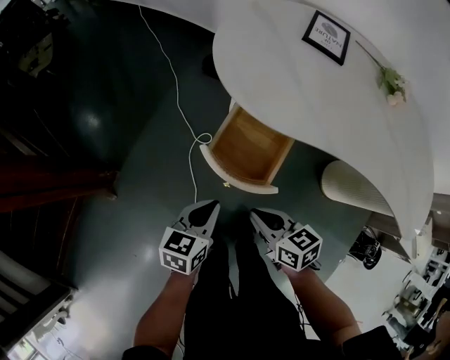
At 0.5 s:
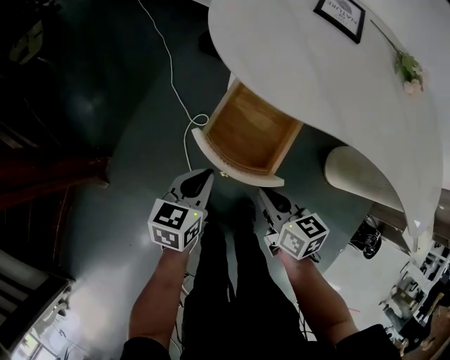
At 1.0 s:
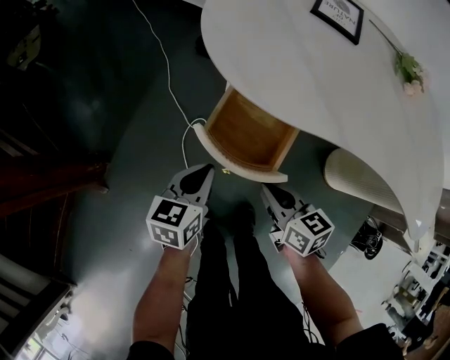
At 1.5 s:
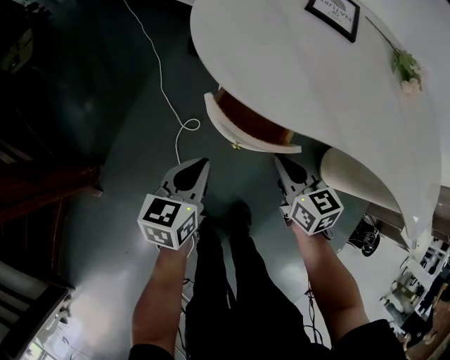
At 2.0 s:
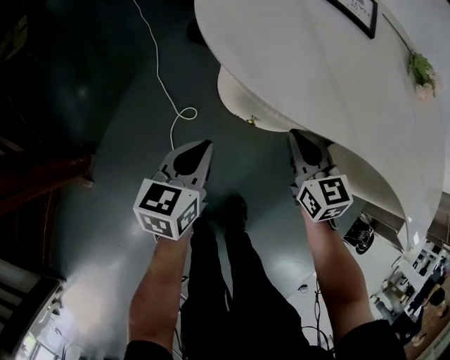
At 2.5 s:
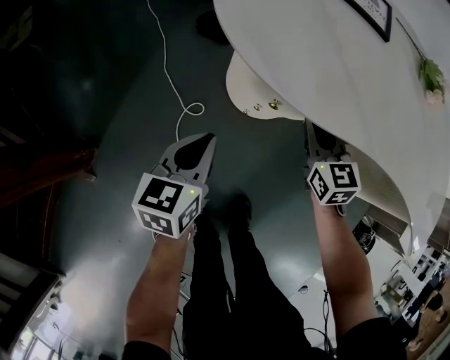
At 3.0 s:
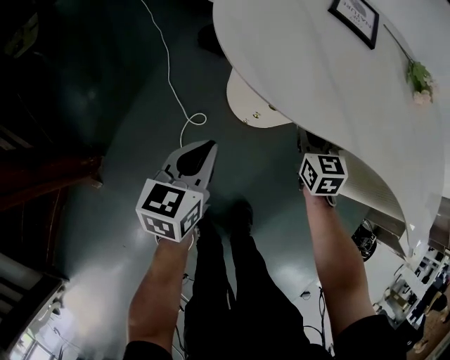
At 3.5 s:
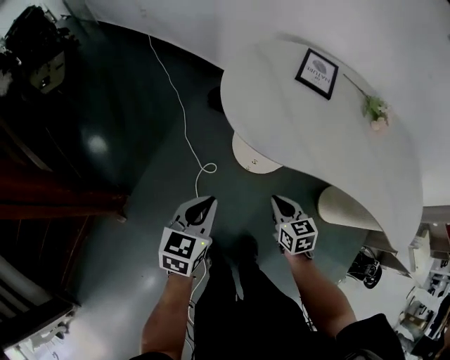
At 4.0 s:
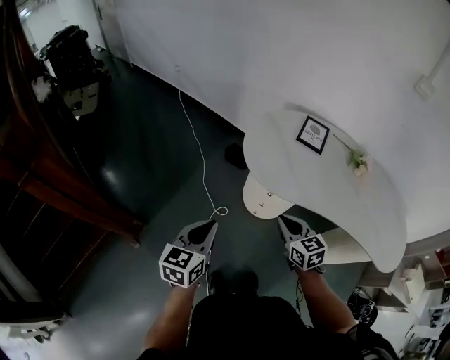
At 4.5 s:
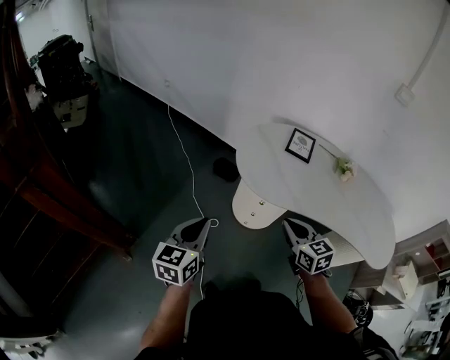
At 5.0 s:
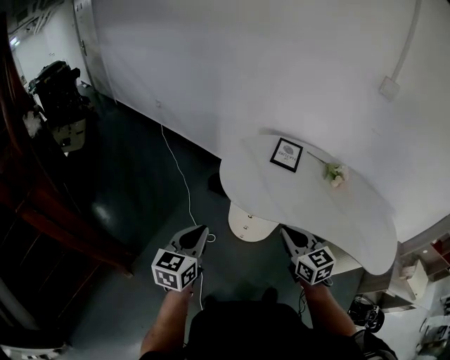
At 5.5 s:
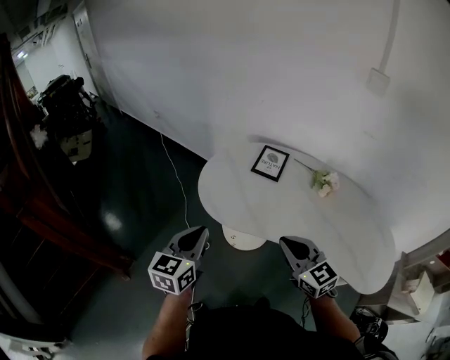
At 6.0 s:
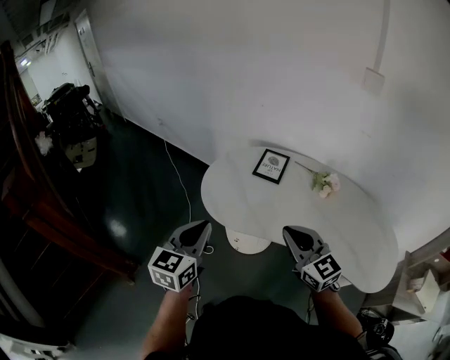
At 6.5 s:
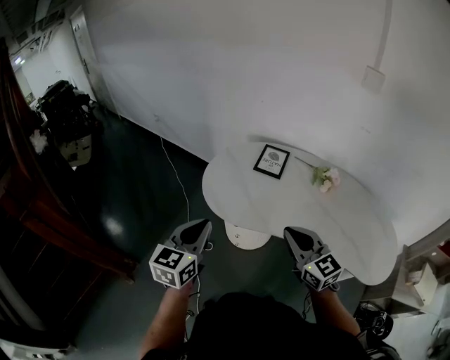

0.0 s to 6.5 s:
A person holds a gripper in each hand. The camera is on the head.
0.0 to 2.0 s: The left gripper shifts some 15 cm forward and downward. Meanwhile the right gripper travels forward and to the right by roughly 20 cm, and rotates about 30 degrees.
2.0 to 4.5 s: The left gripper heads upward, backward and to the left, covering about 40 cm. The right gripper heads upward and backward, covering some 35 cm.
4.5 to 6.5 s: The two grippers go approximately 20 cm to the right and upward. The right gripper changes its angle by roughly 20 degrees.

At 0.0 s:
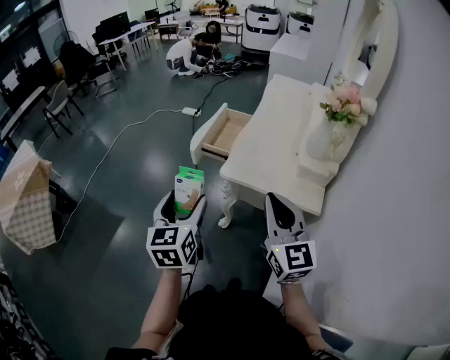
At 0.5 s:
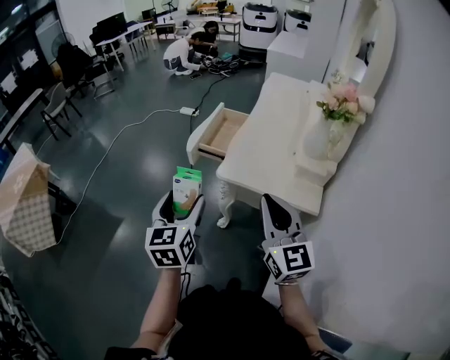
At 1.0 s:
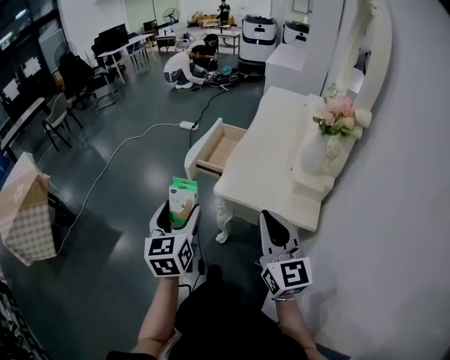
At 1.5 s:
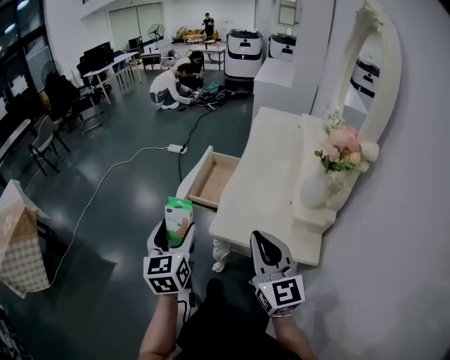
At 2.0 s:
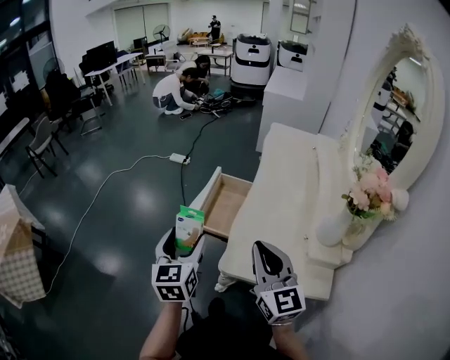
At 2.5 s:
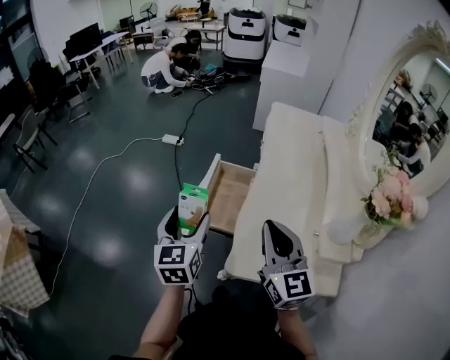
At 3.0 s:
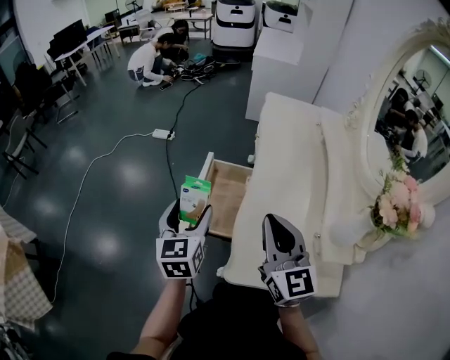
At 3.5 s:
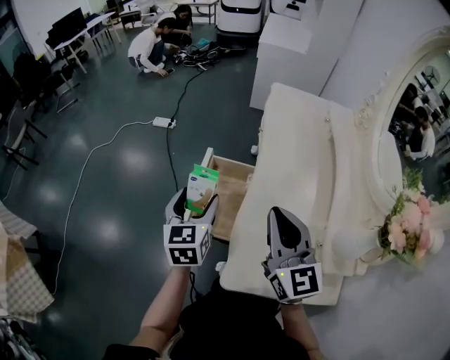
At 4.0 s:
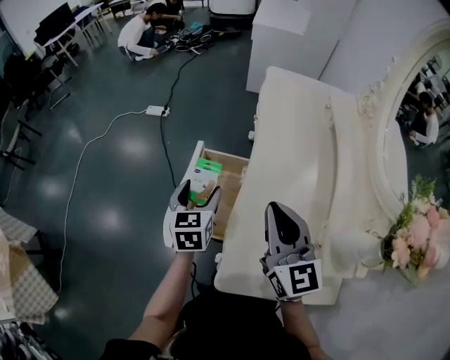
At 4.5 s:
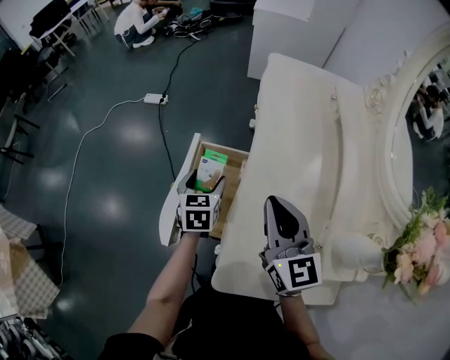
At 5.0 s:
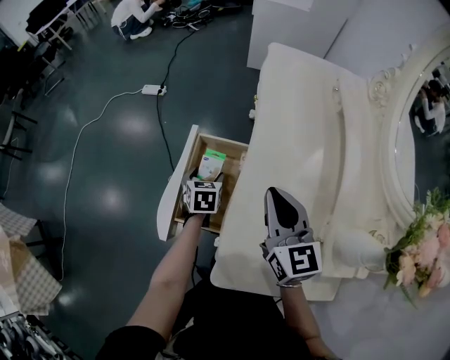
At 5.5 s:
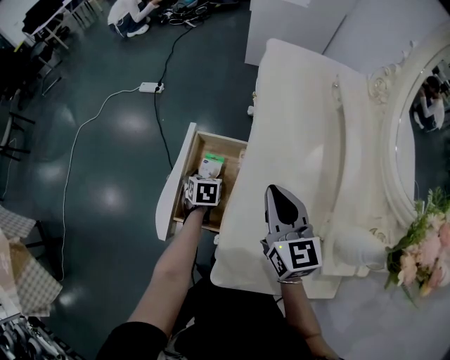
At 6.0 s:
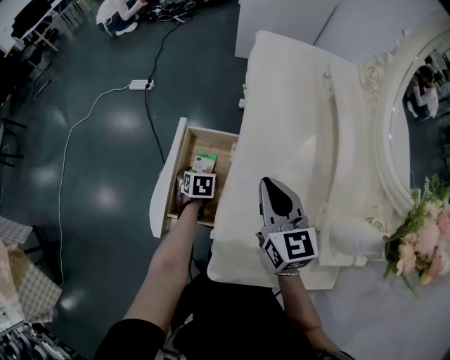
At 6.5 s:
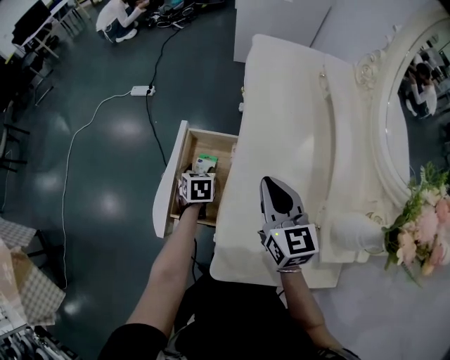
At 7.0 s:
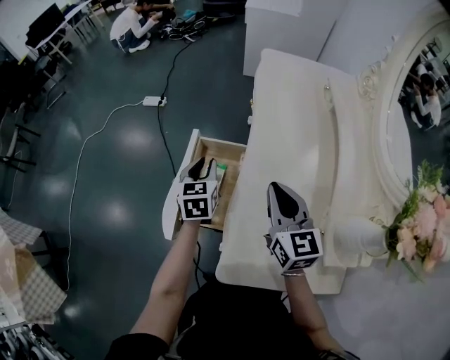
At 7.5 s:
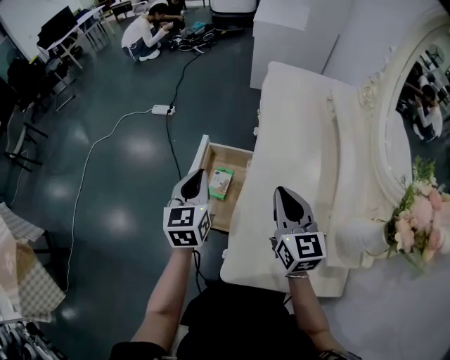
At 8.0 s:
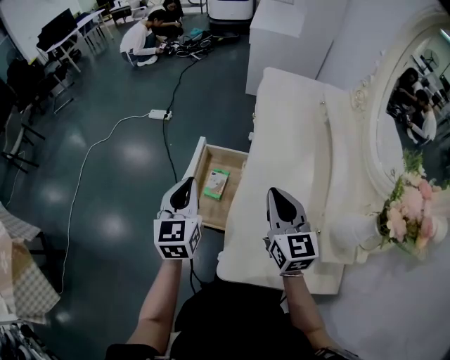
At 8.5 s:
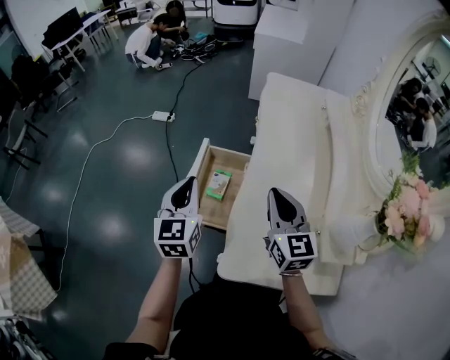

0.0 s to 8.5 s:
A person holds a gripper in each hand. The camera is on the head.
0.0 to 2.0 s: The two grippers go roughly 25 cm forward.
2.0 to 4.0 s: The left gripper goes roughly 30 cm forward and downward. The right gripper travels forward by about 20 cm.
4.0 to 6.5 s: The left gripper moves downward, some 20 cm, and rotates some 20 degrees, while the right gripper is displaced downward by about 10 cm.
6.5 to 8.5 s: The right gripper ends up some 5 cm from where it was. The left gripper shifts some 25 cm upward, tilts its fingers roughly 40 degrees upward, and closes its fingers.

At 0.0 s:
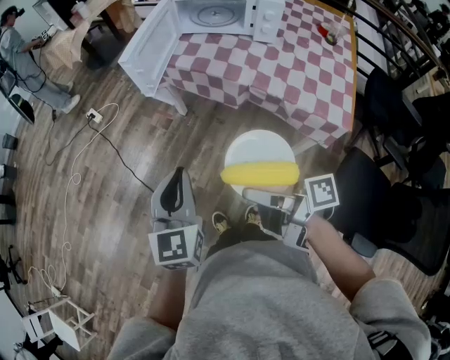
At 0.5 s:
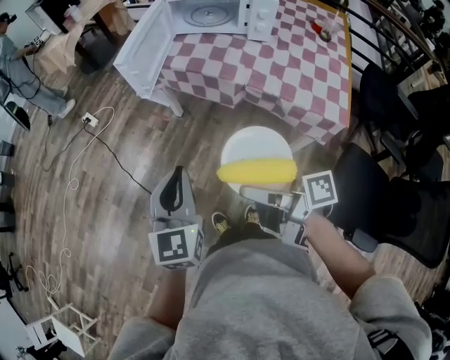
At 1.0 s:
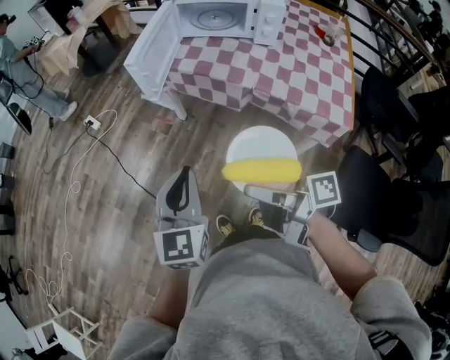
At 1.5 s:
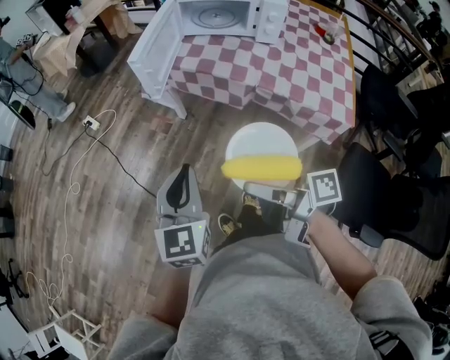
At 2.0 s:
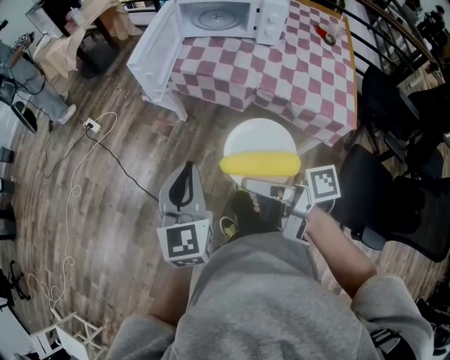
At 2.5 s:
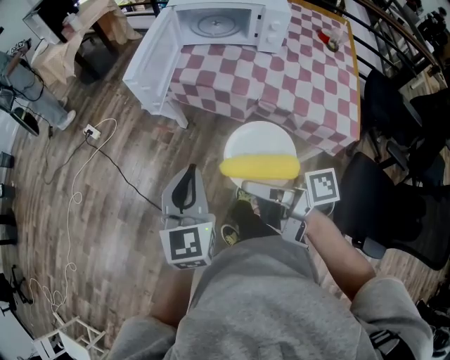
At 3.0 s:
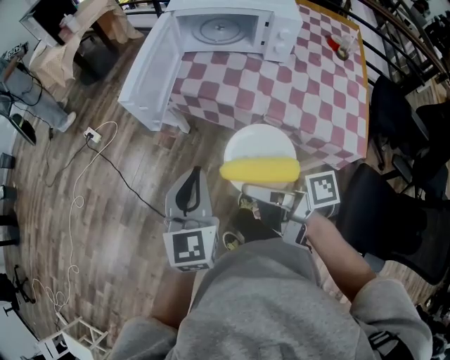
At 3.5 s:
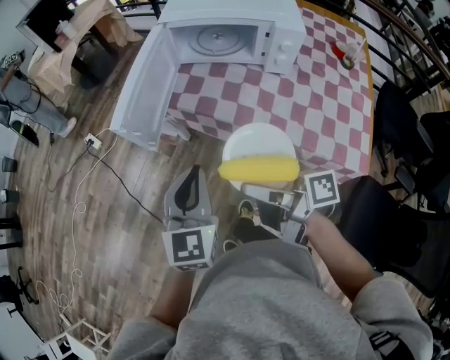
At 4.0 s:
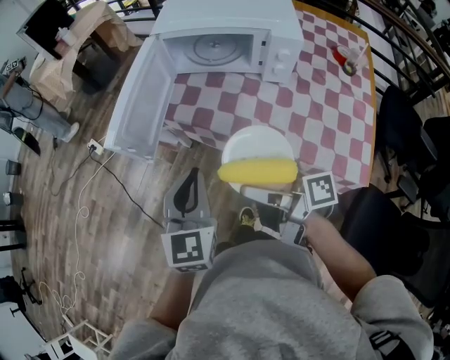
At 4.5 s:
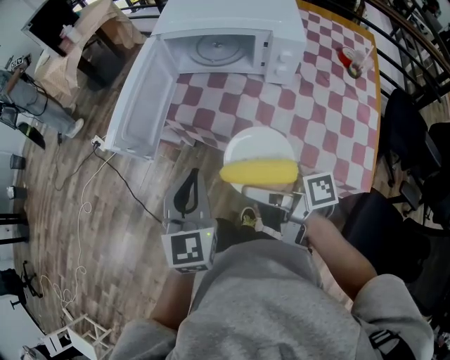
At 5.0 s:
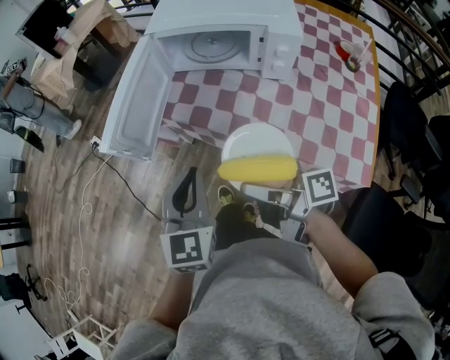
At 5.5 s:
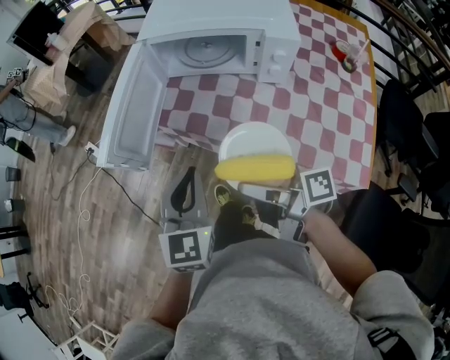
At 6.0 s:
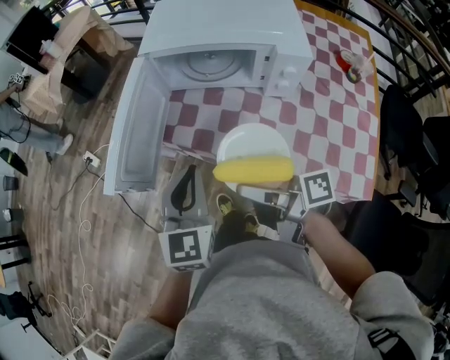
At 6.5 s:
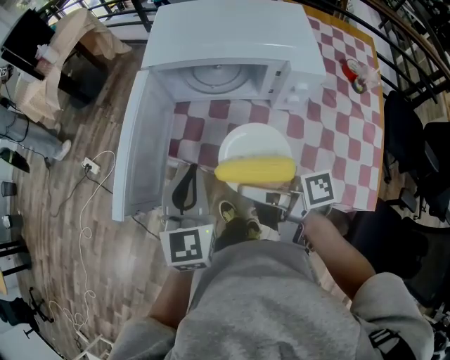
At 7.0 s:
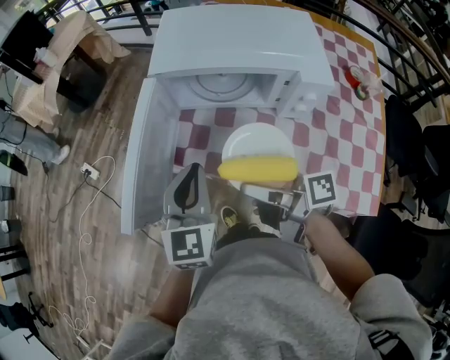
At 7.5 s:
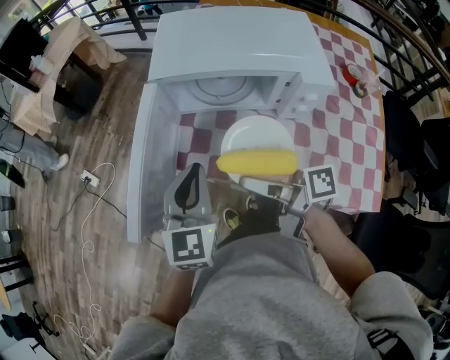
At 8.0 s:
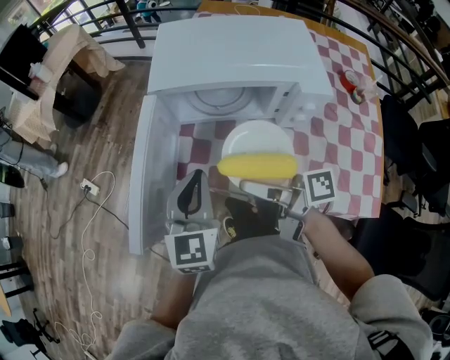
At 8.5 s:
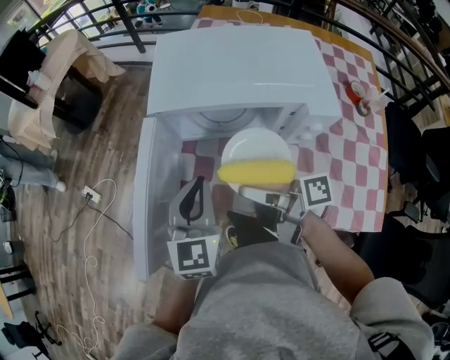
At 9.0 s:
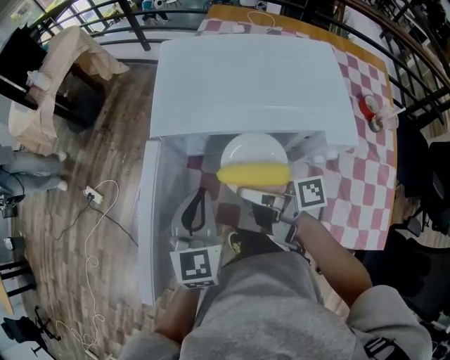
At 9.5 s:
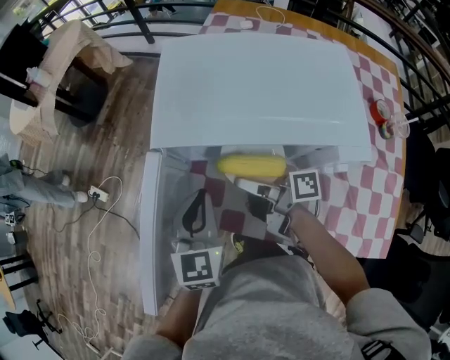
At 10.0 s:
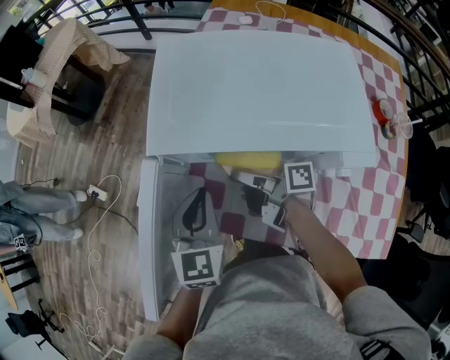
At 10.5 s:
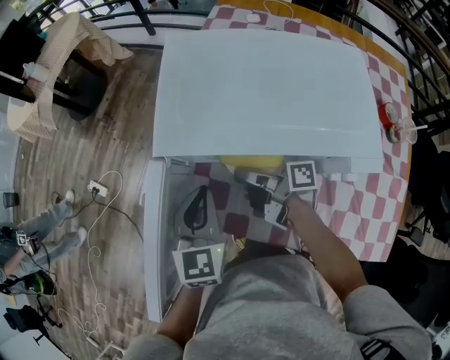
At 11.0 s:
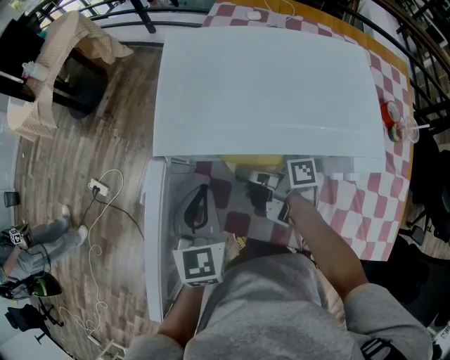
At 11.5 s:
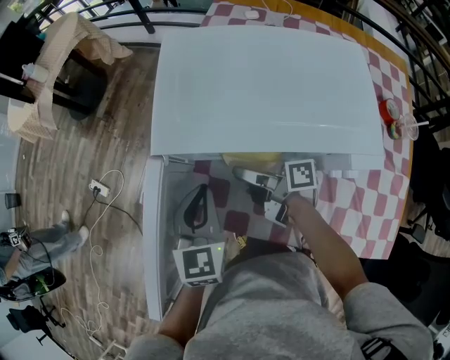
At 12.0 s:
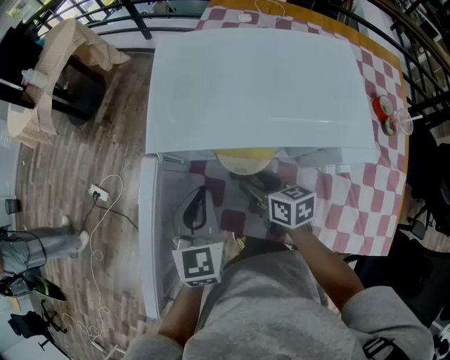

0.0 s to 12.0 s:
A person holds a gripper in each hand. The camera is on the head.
0.0 to 2.0 s: The right gripper shifts about 5 cm forward.
2.0 to 4.0 s: The two grippers go roughly 25 cm forward and to the right.
4.0 to 6.0 s: The grippers both shift forward by approximately 10 cm.
6.0 to 8.0 s: Both grippers move forward, about 15 cm.
8.0 to 10.0 s: The left gripper travels forward and downward by roughly 15 cm; the right gripper moves forward and downward, roughly 20 cm.
10.0 to 12.0 s: The right gripper ends up about 5 cm from where it was, rolls counterclockwise, seen from behind, by about 40 degrees, and opens its fingers.
